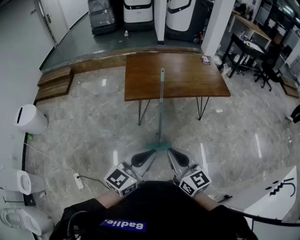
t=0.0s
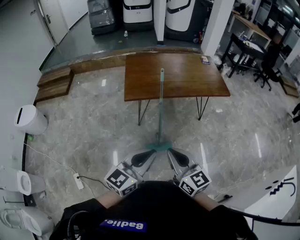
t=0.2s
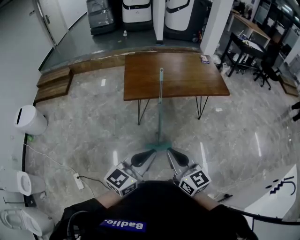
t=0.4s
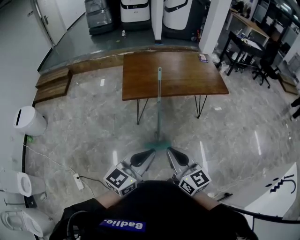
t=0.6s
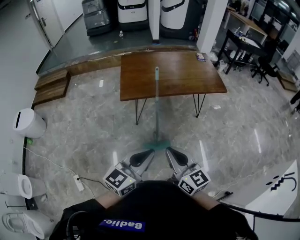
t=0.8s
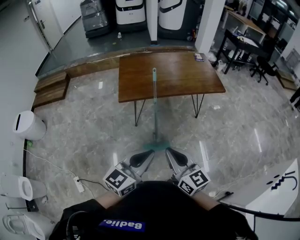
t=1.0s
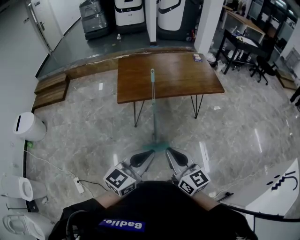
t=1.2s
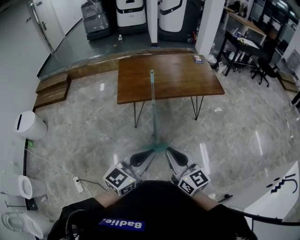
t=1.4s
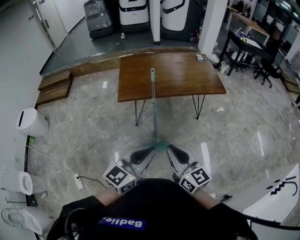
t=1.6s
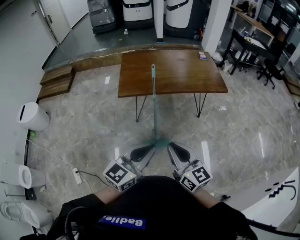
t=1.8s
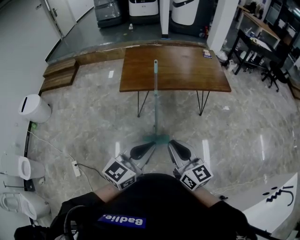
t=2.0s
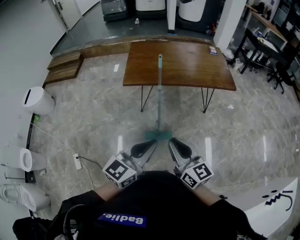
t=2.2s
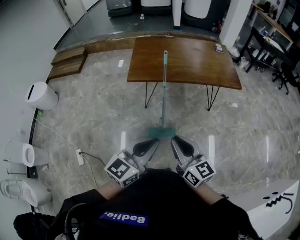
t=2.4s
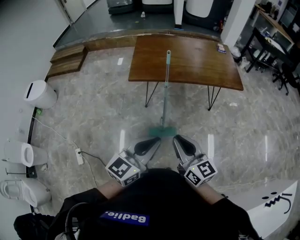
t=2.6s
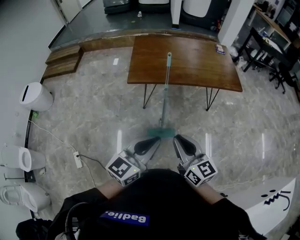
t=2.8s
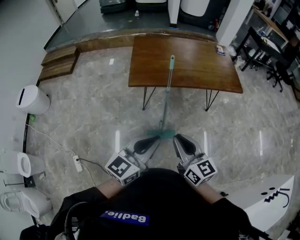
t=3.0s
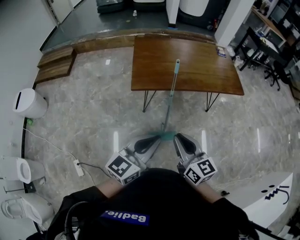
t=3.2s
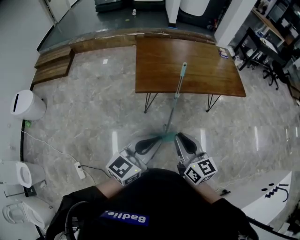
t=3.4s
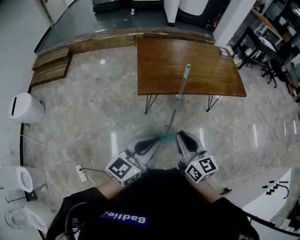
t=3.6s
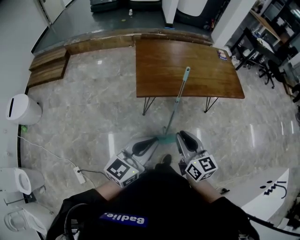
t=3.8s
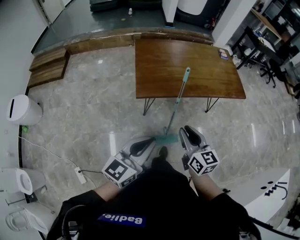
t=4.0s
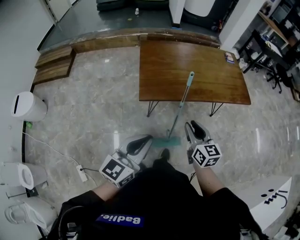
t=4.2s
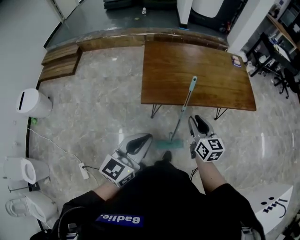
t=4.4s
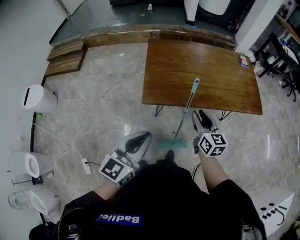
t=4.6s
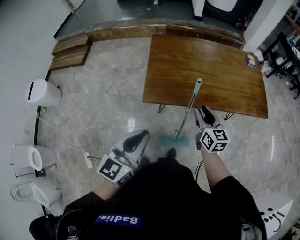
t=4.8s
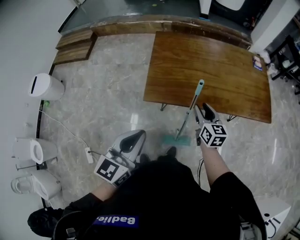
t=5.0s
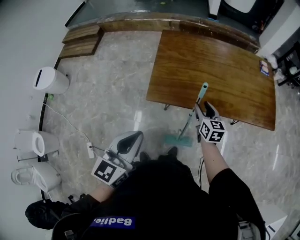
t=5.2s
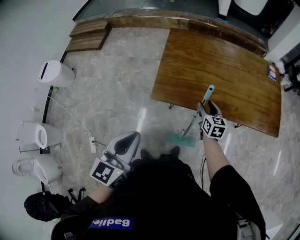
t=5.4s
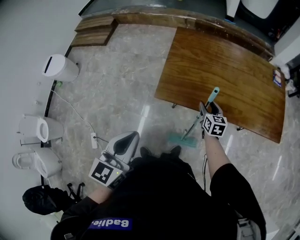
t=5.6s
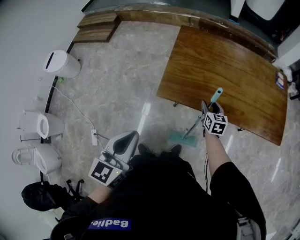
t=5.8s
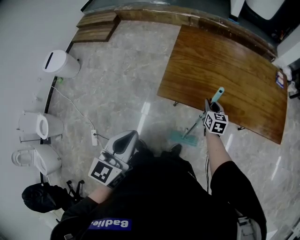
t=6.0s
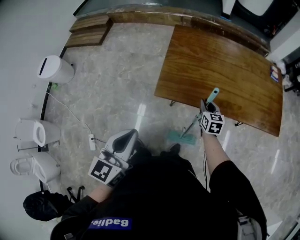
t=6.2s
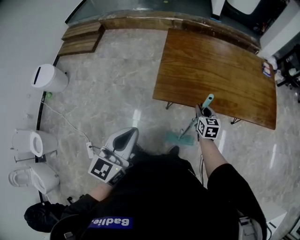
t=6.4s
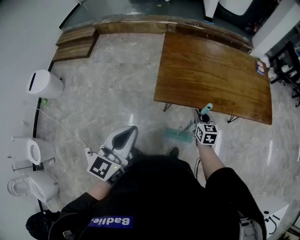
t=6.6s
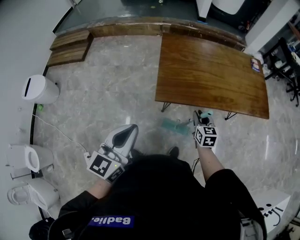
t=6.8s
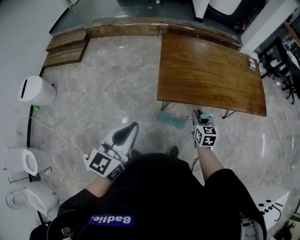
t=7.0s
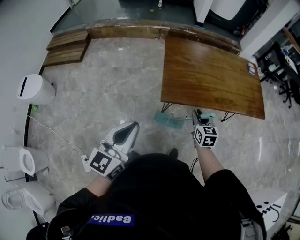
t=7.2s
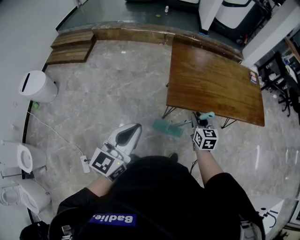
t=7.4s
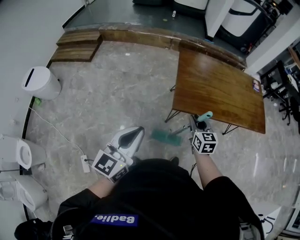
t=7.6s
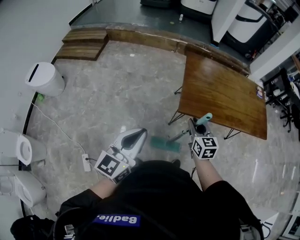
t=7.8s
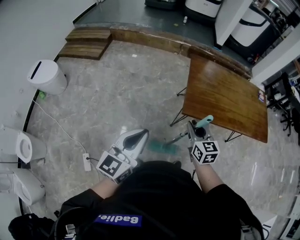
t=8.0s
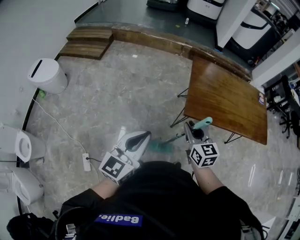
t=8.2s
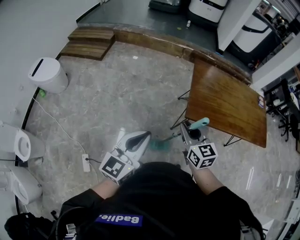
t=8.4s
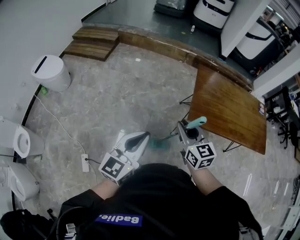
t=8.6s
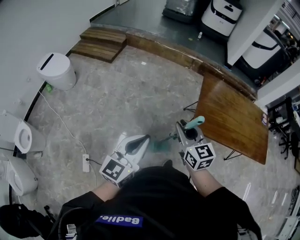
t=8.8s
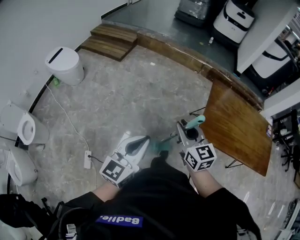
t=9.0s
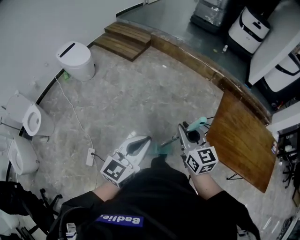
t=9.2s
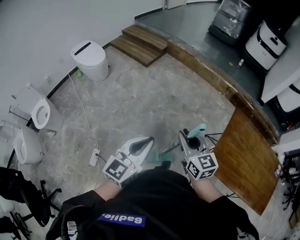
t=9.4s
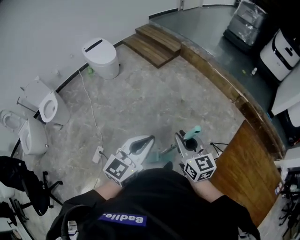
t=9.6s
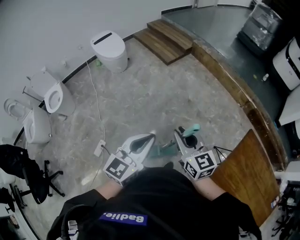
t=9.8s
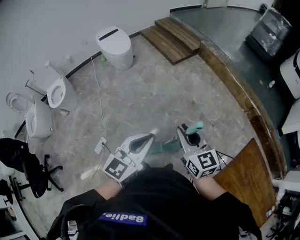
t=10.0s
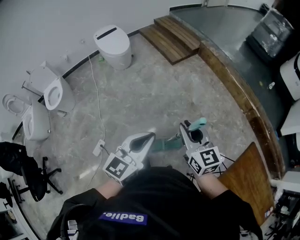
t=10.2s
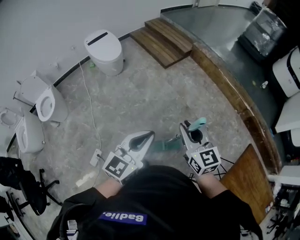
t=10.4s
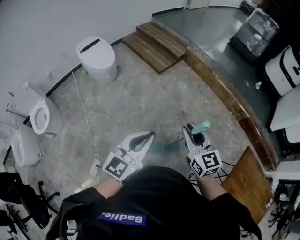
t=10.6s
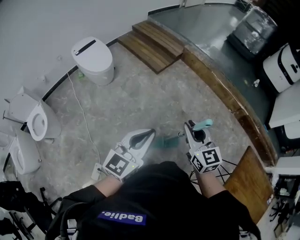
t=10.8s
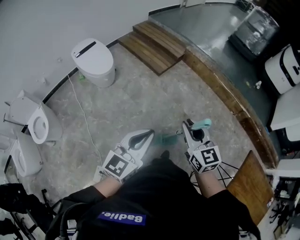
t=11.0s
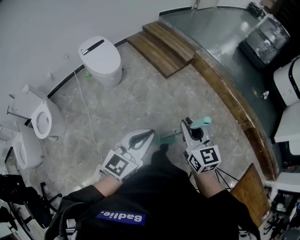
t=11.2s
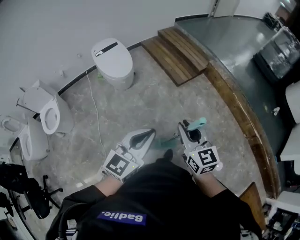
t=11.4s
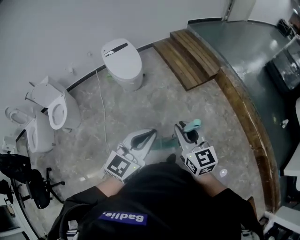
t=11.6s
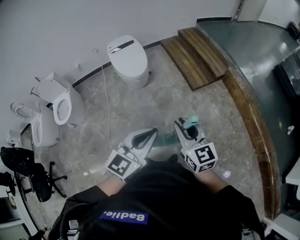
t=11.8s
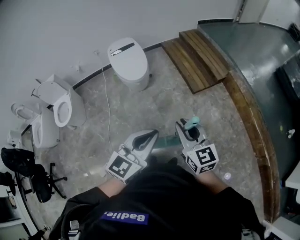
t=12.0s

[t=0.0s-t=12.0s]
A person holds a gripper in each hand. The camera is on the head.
t=0.0s to t=1.6s: The grippers both shift to the right by about 5 cm.
t=1.6s to t=3.0s: The right gripper is displaced forward by approximately 5 cm; the left gripper heads forward and to the left, covering roughly 10 cm.
t=3.0s to t=4.4s: The left gripper is displaced to the left and forward by roughly 20 cm. The right gripper moves forward, some 25 cm.
t=4.4s to t=6.0s: The right gripper heads forward and downward, covering some 30 cm, and opens, then closes again. The left gripper goes about 5 cm forward, and changes its angle by approximately 30 degrees.
t=6.0s to t=7.6s: The right gripper moves to the left, backward and upward, approximately 25 cm, while the left gripper moves to the left, approximately 20 cm, and turns by some 20 degrees.
t=7.6s to t=9.0s: The left gripper heads to the left, covering some 15 cm. Meanwhile the right gripper travels to the left and upward by some 30 cm, and swivels approximately 30 degrees.
t=9.0s to t=10.4s: The left gripper changes place by roughly 30 cm, and turns by roughly 20 degrees. Meanwhile the right gripper shifts by about 35 cm, and turns by approximately 30 degrees.
t=10.4s to t=12.0s: Both grippers travel together forward, about 35 cm.

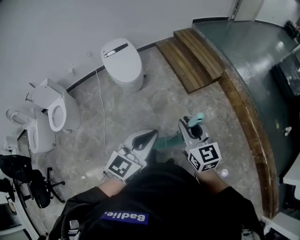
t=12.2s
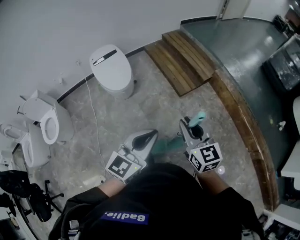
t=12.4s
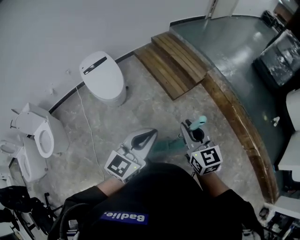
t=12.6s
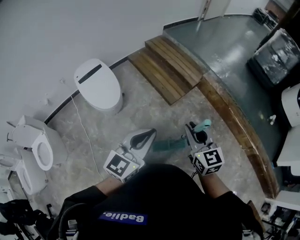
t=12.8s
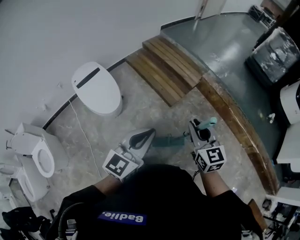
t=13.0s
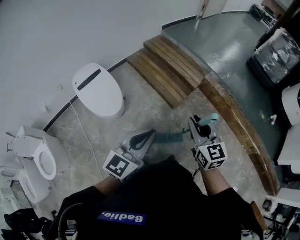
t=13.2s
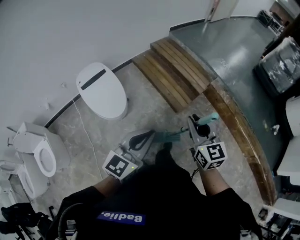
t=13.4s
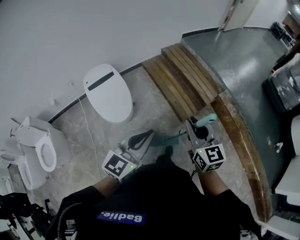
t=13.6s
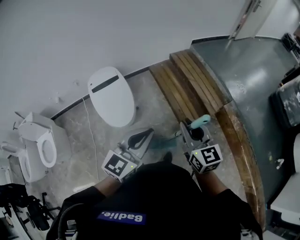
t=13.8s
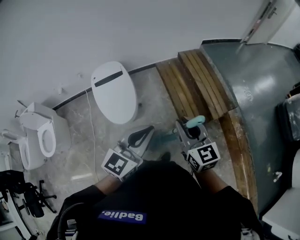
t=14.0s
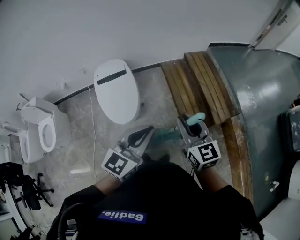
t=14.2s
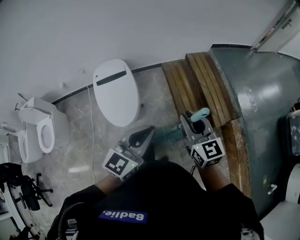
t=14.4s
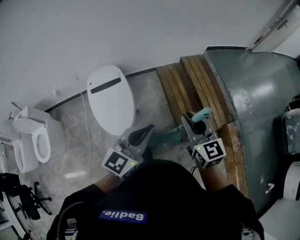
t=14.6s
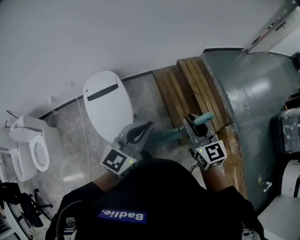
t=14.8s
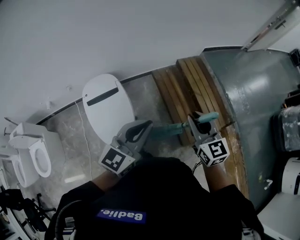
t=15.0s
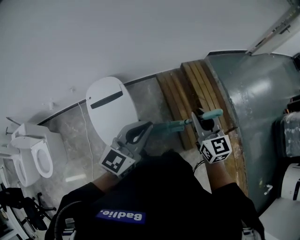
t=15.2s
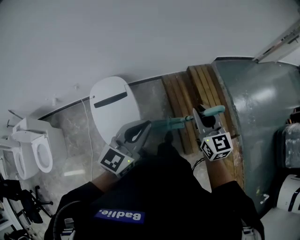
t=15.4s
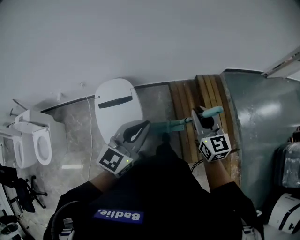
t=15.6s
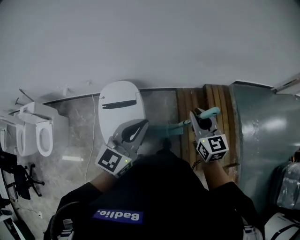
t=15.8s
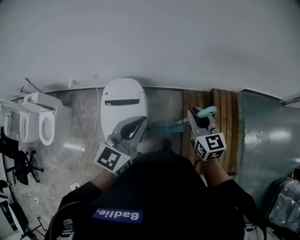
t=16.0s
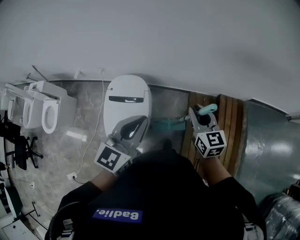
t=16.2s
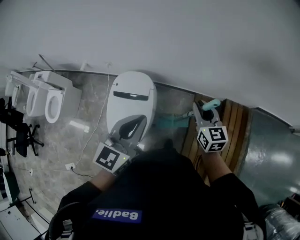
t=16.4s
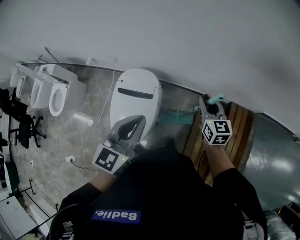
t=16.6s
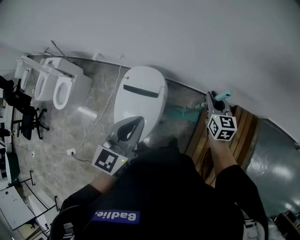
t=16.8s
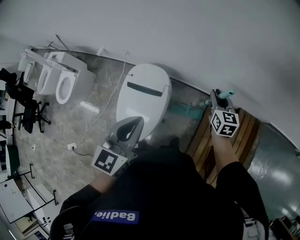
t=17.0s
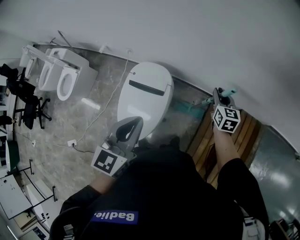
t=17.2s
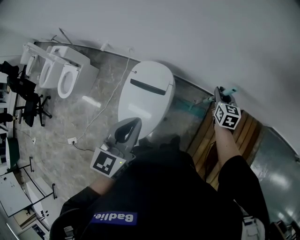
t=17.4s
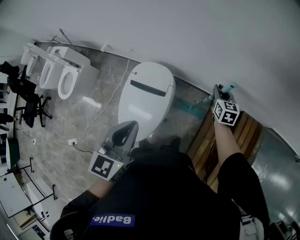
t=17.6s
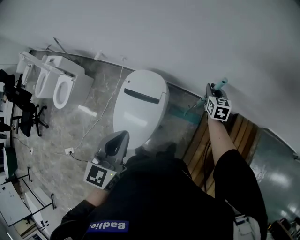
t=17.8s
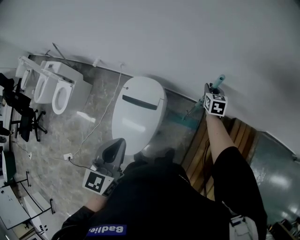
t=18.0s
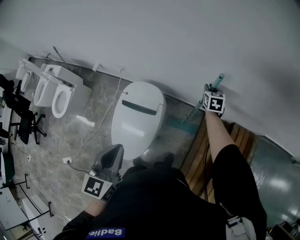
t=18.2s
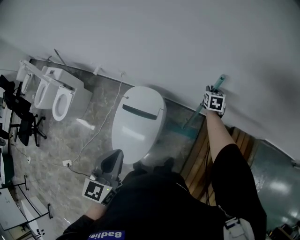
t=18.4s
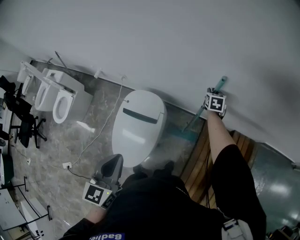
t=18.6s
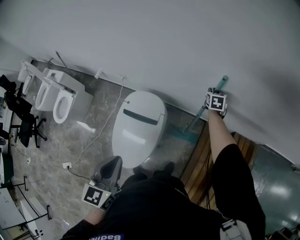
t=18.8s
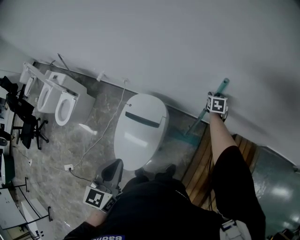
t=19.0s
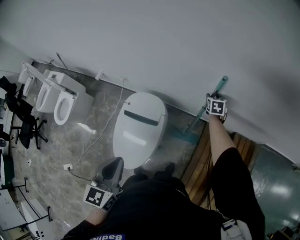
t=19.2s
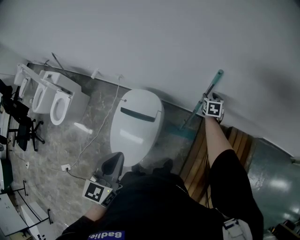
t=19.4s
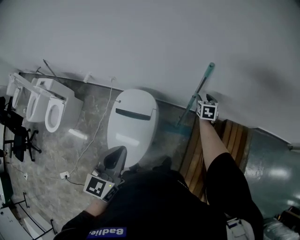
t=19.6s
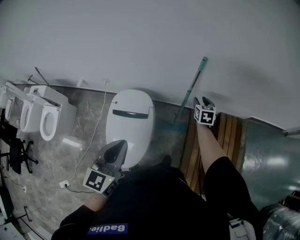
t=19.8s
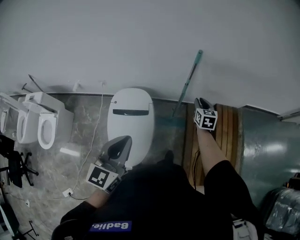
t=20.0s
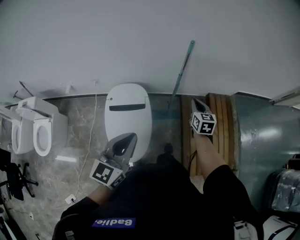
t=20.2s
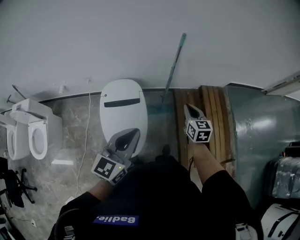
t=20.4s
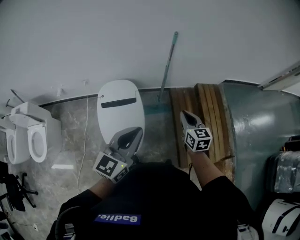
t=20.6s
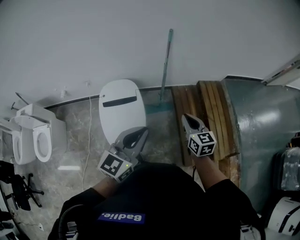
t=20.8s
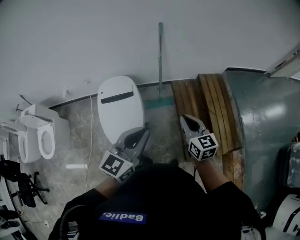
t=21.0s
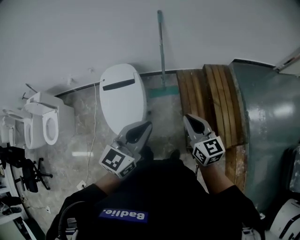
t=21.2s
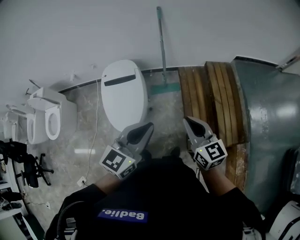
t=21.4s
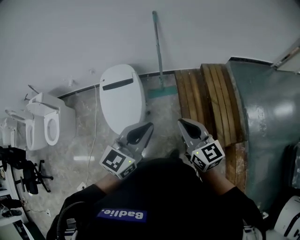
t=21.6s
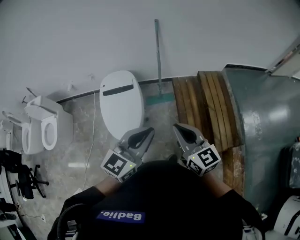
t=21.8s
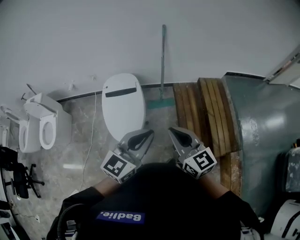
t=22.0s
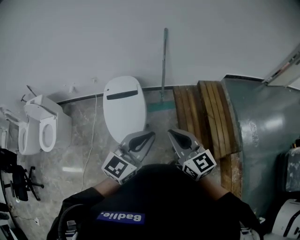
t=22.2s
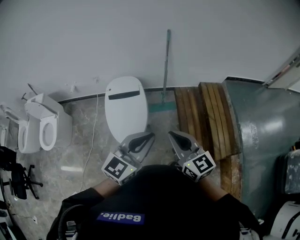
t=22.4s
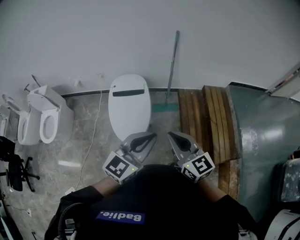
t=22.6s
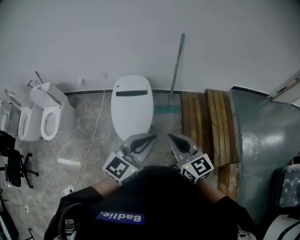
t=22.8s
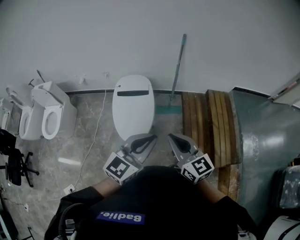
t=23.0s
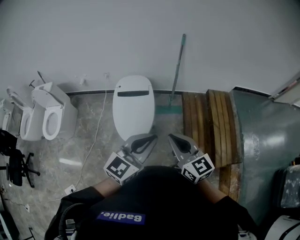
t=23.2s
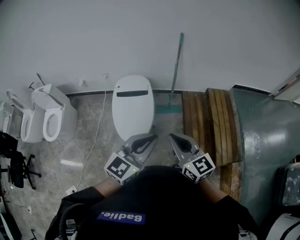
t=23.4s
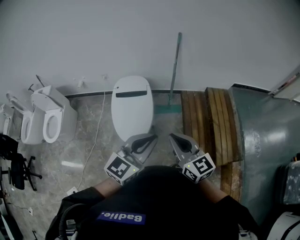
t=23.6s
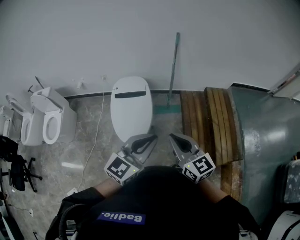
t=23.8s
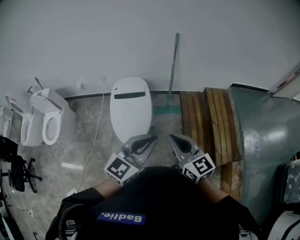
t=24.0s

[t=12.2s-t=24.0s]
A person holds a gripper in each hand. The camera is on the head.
t=12.2s to t=13.6s: The left gripper is displaced forward and to the left by roughly 35 cm. Meanwhile the right gripper goes approximately 30 cm forward.
t=13.6s to t=15.2s: Both grippers move forward, approximately 40 cm.
t=15.2s to t=16.6s: The left gripper shifts by approximately 20 cm, and turns by roughly 40 degrees. The right gripper ends up roughly 40 cm from where it was, and rotates roughly 30 degrees.
t=16.6s to t=18.2s: The left gripper moves to the left, about 10 cm, while the right gripper is displaced forward and downward by some 25 cm.
t=18.2s to t=19.6s: The right gripper goes about 5 cm backward, and opens its fingers.
t=19.6s to t=21.0s: The left gripper shifts some 20 cm backward and to the right, and rotates roughly 40 degrees. Meanwhile the right gripper travels backward by some 50 cm, rotates approximately 20 degrees, and closes up.
t=21.0s to t=22.6s: The left gripper heads backward, covering roughly 10 cm. Meanwhile the right gripper heads backward, to the left and upward, covering some 20 cm, and rotates about 20 degrees.
t=22.6s to t=24.0s: The grippers make only small movements.
